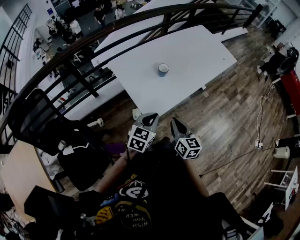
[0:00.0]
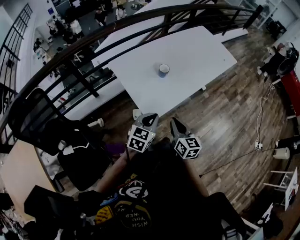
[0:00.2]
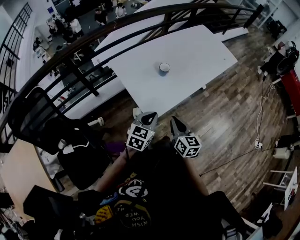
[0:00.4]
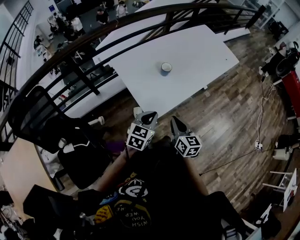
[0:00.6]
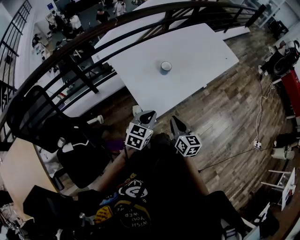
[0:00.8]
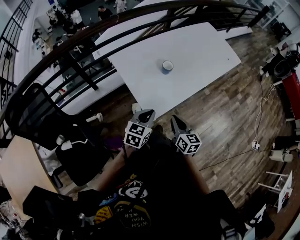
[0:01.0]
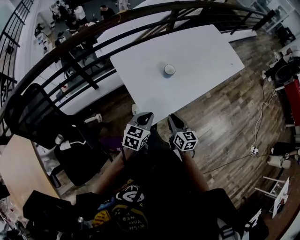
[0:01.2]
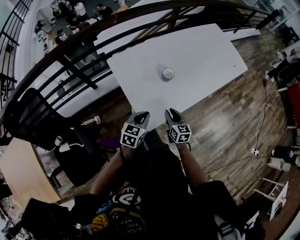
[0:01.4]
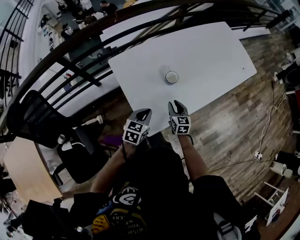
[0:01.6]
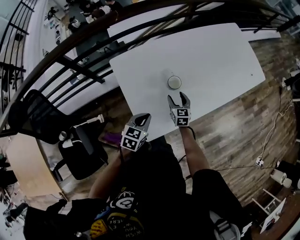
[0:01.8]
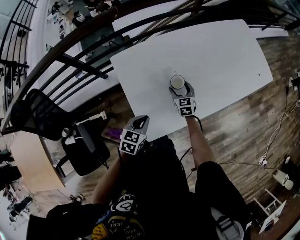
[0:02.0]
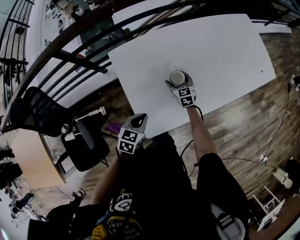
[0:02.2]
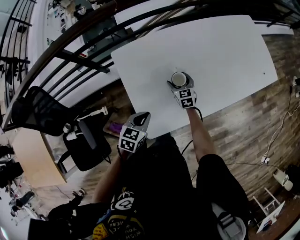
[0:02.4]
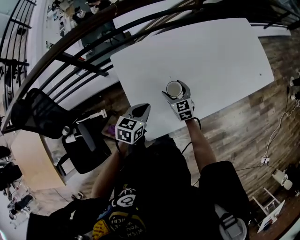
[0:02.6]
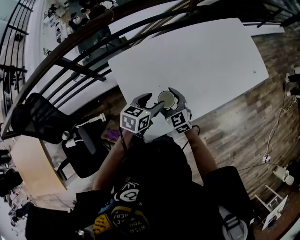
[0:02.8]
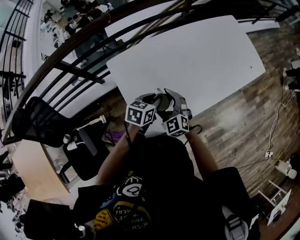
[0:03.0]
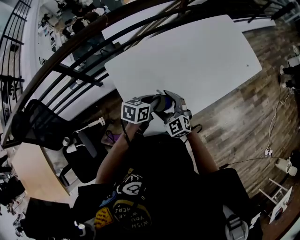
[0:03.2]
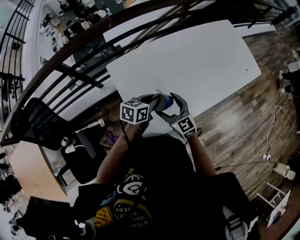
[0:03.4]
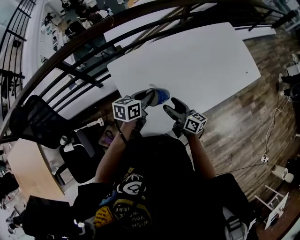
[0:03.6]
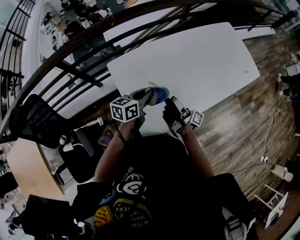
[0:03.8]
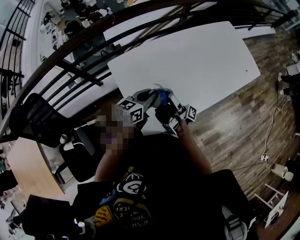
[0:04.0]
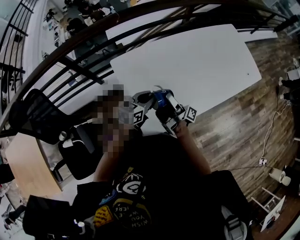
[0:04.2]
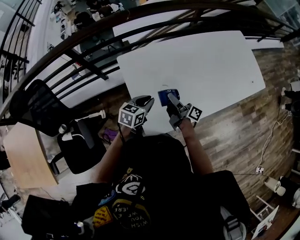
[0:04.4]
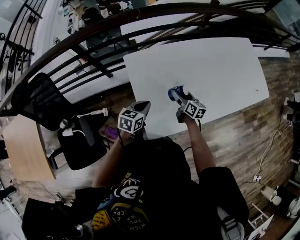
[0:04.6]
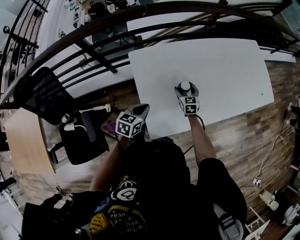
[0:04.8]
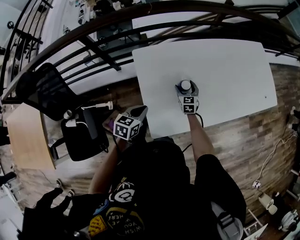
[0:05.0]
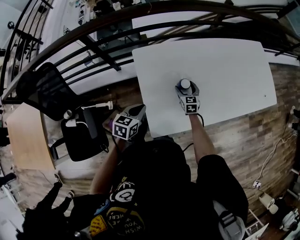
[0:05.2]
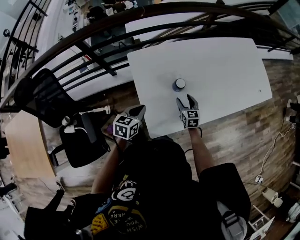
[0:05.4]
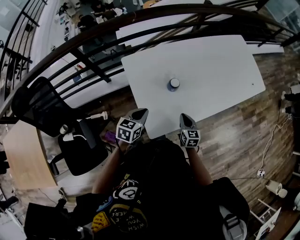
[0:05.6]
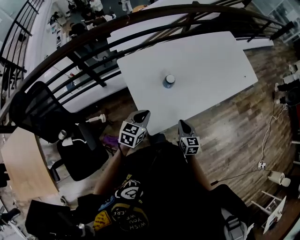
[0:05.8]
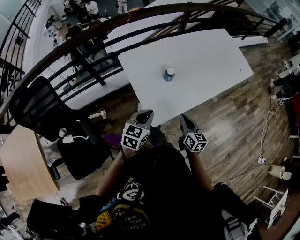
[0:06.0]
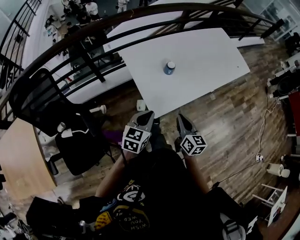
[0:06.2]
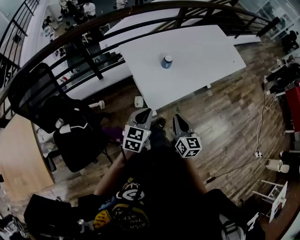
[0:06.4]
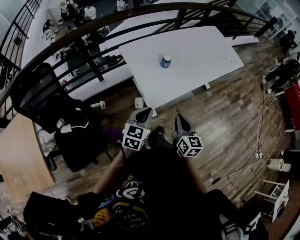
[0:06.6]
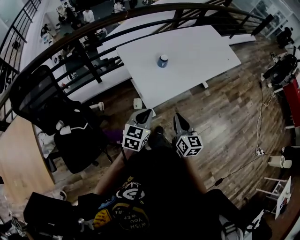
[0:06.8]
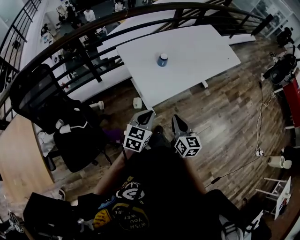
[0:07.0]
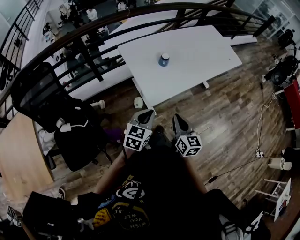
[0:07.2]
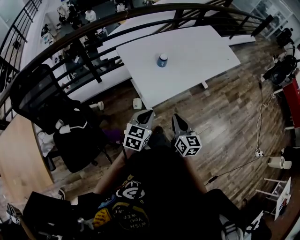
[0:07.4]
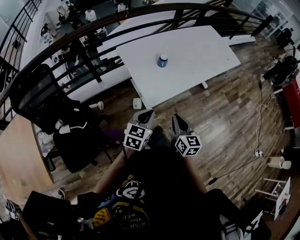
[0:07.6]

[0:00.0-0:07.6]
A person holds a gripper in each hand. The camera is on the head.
0.0 to 1.6 s: The right gripper shifts roughly 30 cm forward and downward. The left gripper shifts roughly 20 cm forward and downward.
1.6 to 3.0 s: The right gripper shifts some 15 cm upward and to the left, rolls counterclockwise, seen from behind, by some 40 degrees, and opens up, while the left gripper is displaced forward by approximately 10 cm, and opens, then closes again.
3.0 to 4.6 s: The right gripper heads forward and downward, covering about 10 cm, and rolls clockwise, seen from behind, by some 60 degrees. The left gripper shifts roughly 10 cm to the left and backward.
4.6 to 6.0 s: The right gripper moves backward, some 25 cm, and closes its fingers. Meanwhile the left gripper goes roughly 20 cm backward and upward.
6.0 to 7.6 s: The grippers both shift backward by roughly 15 cm.

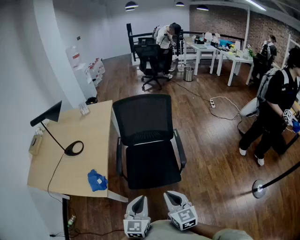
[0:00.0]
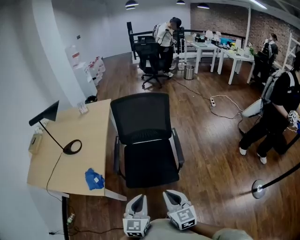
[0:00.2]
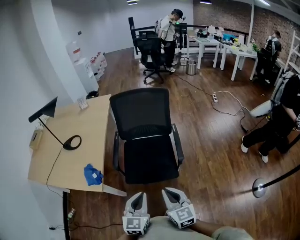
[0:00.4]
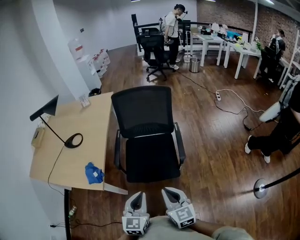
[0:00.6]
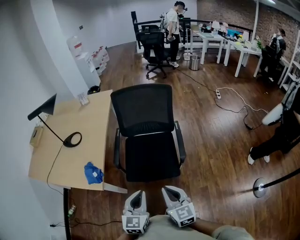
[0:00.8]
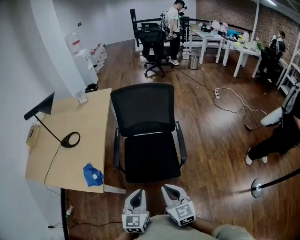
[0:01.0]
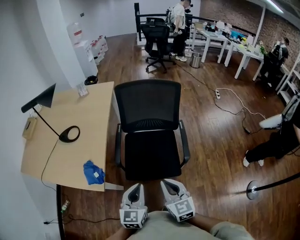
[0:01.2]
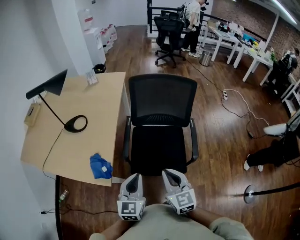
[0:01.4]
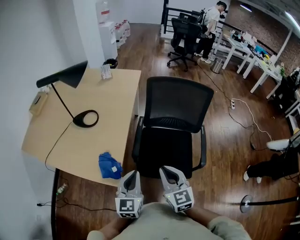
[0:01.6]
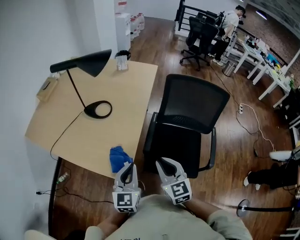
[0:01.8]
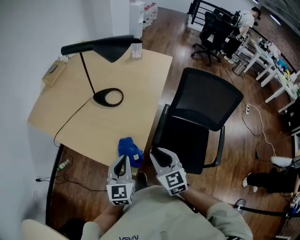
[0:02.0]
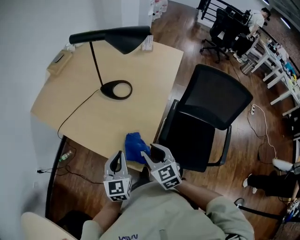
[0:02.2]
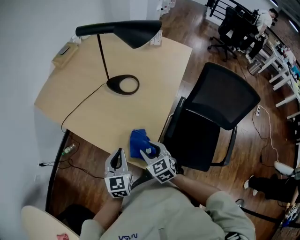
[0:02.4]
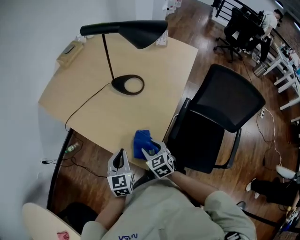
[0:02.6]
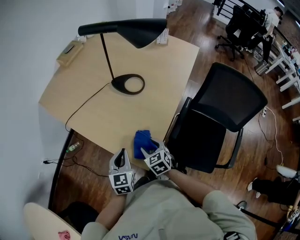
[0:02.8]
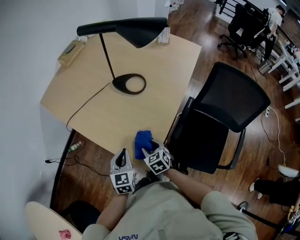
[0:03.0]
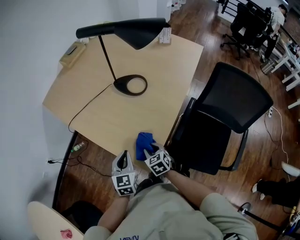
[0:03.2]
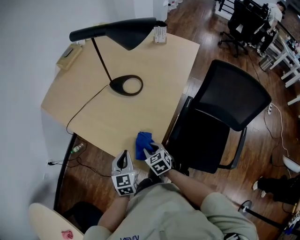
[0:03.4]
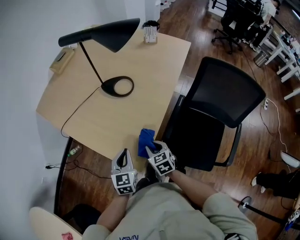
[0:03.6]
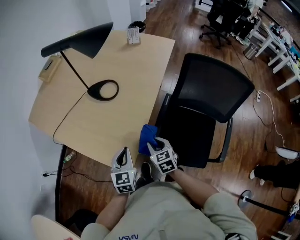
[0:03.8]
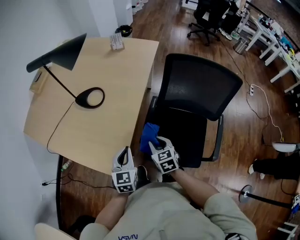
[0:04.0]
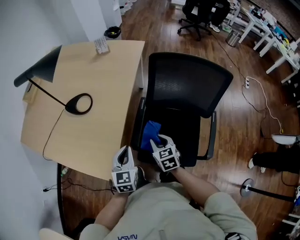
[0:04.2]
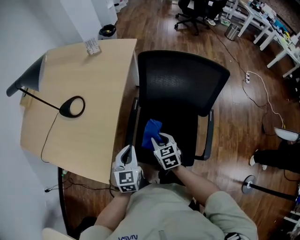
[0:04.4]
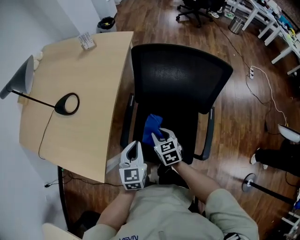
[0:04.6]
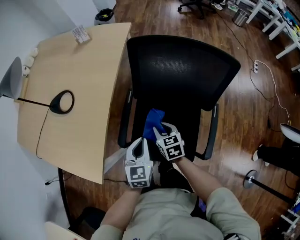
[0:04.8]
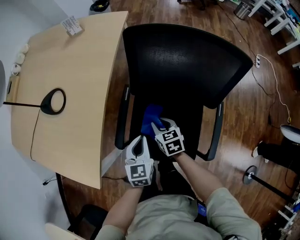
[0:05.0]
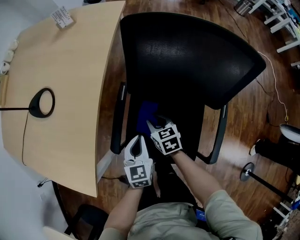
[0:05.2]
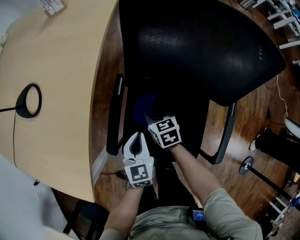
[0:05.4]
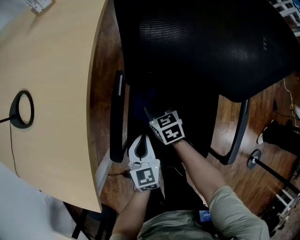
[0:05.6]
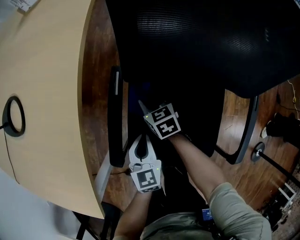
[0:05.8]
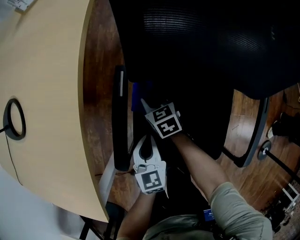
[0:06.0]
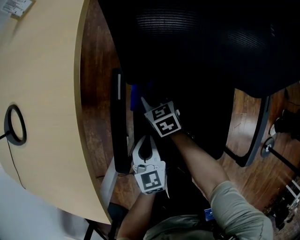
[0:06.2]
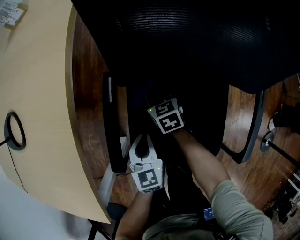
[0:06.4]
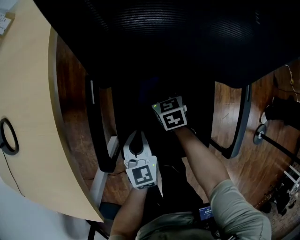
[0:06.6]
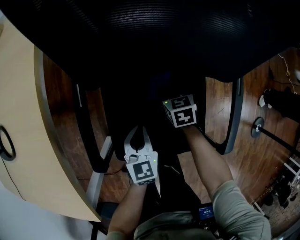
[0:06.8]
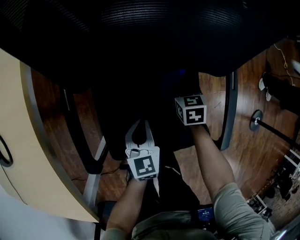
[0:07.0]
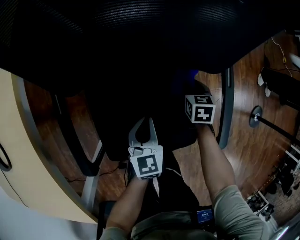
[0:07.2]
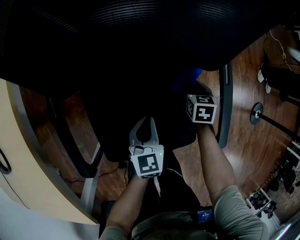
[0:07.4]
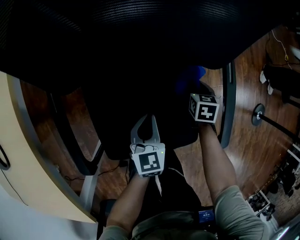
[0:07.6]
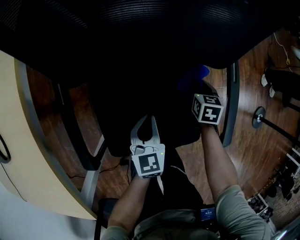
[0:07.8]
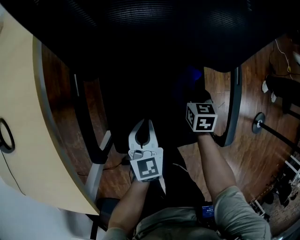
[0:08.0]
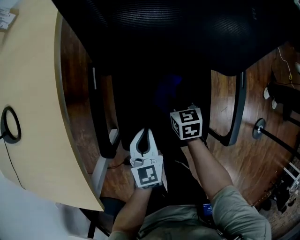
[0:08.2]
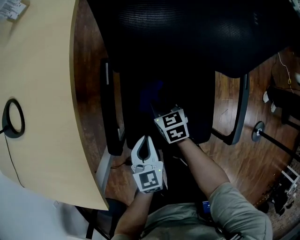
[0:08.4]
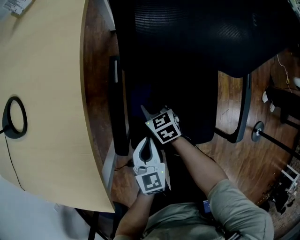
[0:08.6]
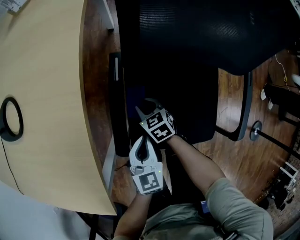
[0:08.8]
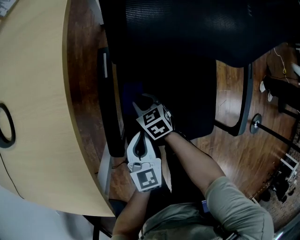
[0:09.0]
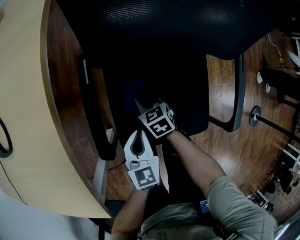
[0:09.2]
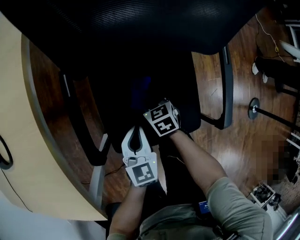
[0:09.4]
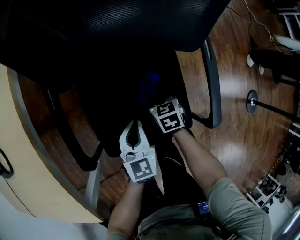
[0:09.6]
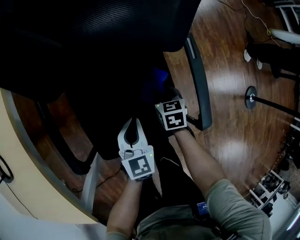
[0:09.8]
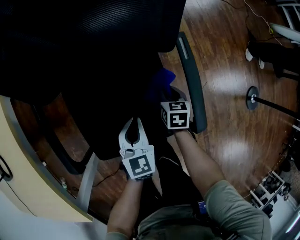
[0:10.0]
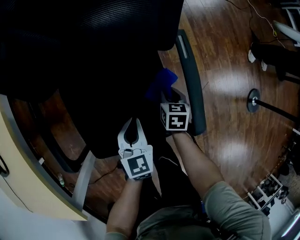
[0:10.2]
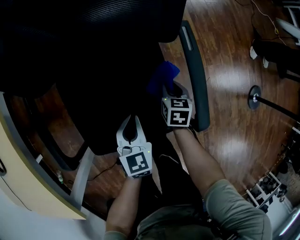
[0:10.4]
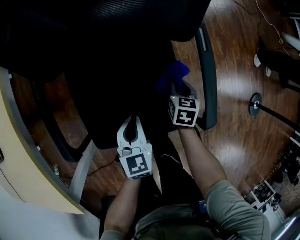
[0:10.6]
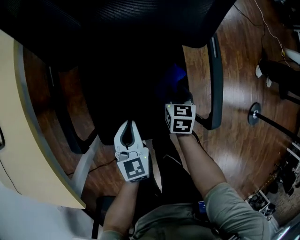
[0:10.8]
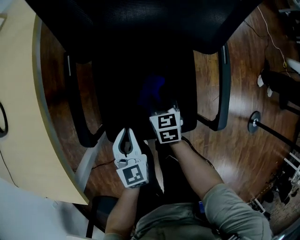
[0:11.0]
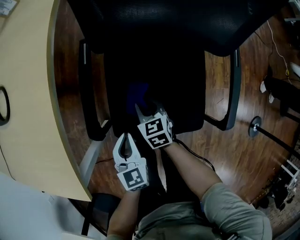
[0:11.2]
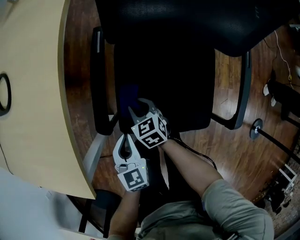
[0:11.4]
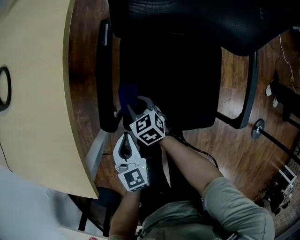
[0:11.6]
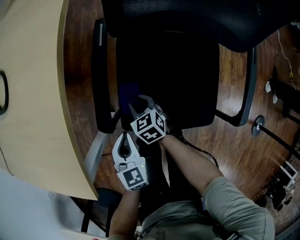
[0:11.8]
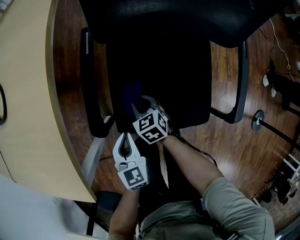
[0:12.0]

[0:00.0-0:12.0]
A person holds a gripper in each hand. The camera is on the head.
0.0 to 1.6 s: Both grippers move forward and to the left, about 25 cm.
1.6 to 3.0 s: The left gripper shifts by roughly 30 cm, and swivels approximately 30 degrees. The right gripper shifts by approximately 40 cm, tilts its fingers roughly 30 degrees downward, and opens up.
3.0 to 4.4 s: Both grippers move to the right, some 35 cm. The right gripper swivels approximately 30 degrees, and closes; the left gripper turns by about 20 degrees.
4.4 to 6.0 s: The right gripper is displaced downward and forward by roughly 35 cm. Meanwhile the left gripper goes roughly 30 cm downward.
6.0 to 7.6 s: The right gripper moves roughly 40 cm, and swivels about 50 degrees, while the left gripper changes place by some 20 cm, and turns by some 20 degrees.
7.6 to 9.0 s: The left gripper ends up approximately 20 cm from where it was. Meanwhile the right gripper ends up roughly 40 cm from where it was, and changes its angle by approximately 40 degrees.
9.0 to 10.4 s: The left gripper moves approximately 25 cm. The right gripper shifts by roughly 40 cm, and rotates roughly 50 degrees.
10.4 to 12.0 s: The right gripper reaches approximately 10 cm upward, then returns, and swivels roughly 50 degrees. Meanwhile the left gripper shifts by approximately 30 cm.

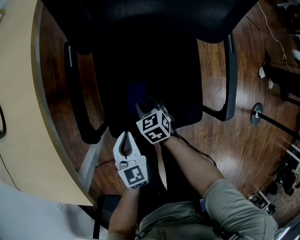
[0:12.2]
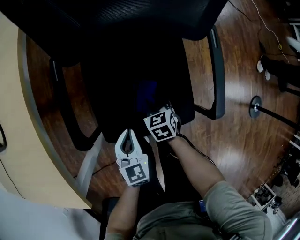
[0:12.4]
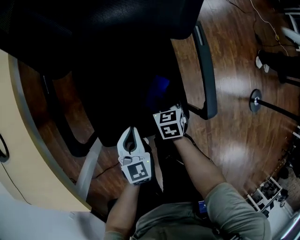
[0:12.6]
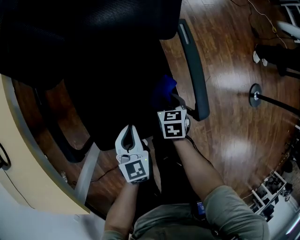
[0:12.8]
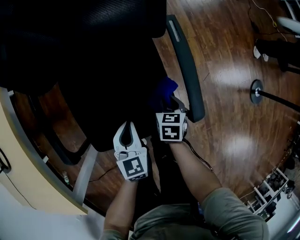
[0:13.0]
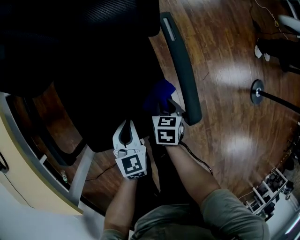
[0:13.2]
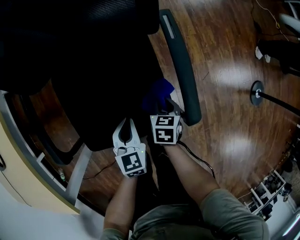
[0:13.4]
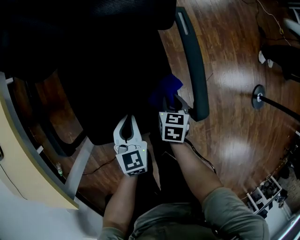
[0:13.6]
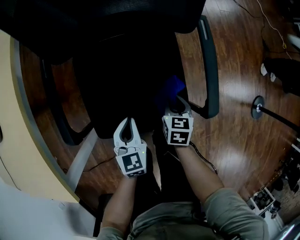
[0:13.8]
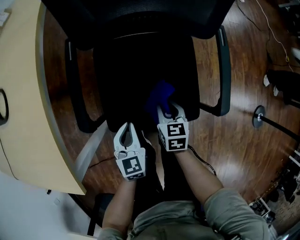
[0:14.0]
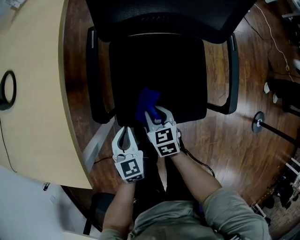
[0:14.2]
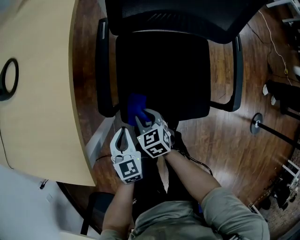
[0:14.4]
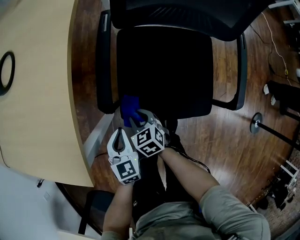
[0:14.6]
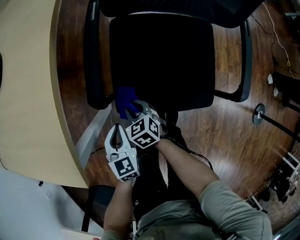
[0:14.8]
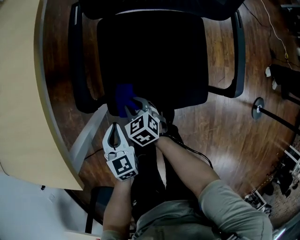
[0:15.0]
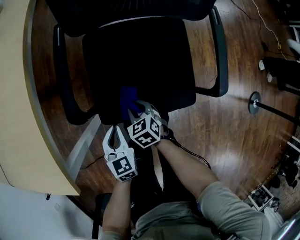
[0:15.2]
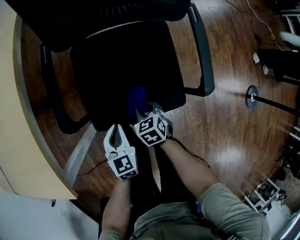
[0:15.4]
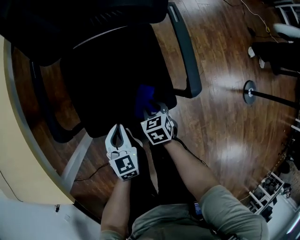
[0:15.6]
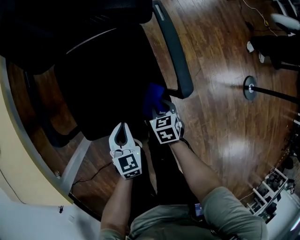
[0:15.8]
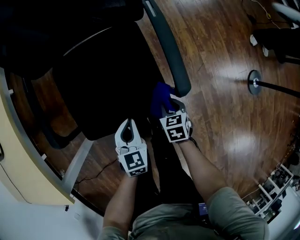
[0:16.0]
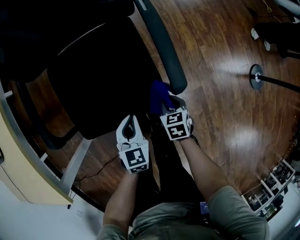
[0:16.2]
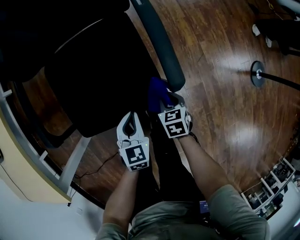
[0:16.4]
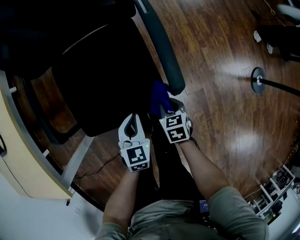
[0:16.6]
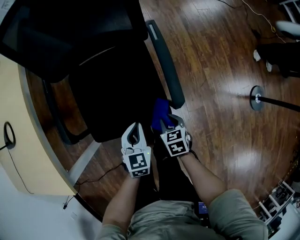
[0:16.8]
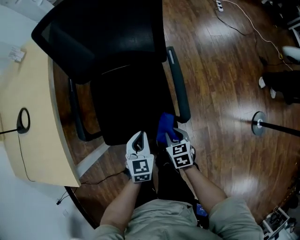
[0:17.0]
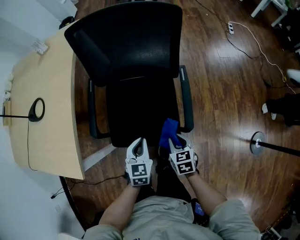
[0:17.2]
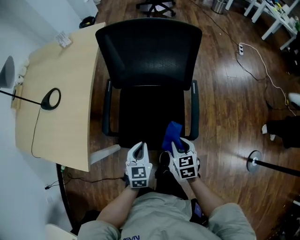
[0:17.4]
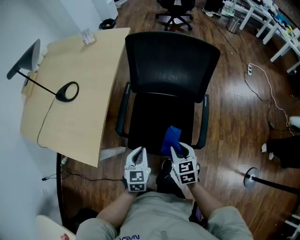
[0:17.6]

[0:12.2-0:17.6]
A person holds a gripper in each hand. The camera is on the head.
12.2 to 13.6 s: The left gripper shifts by about 20 cm. Meanwhile the right gripper changes place by roughly 30 cm, and swivels about 40 degrees.
13.6 to 15.0 s: The left gripper changes place by some 30 cm. Meanwhile the right gripper travels upward and back again, some 10 cm each way, and changes its angle by roughly 50 degrees.
15.0 to 16.2 s: The right gripper changes place by roughly 40 cm, and turns by about 40 degrees, while the left gripper moves roughly 30 cm, and turns by roughly 30 degrees.
16.2 to 17.6 s: Both grippers travel together upward, roughly 30 cm. The right gripper turns by approximately 40 degrees, while the left gripper rotates about 30 degrees.
